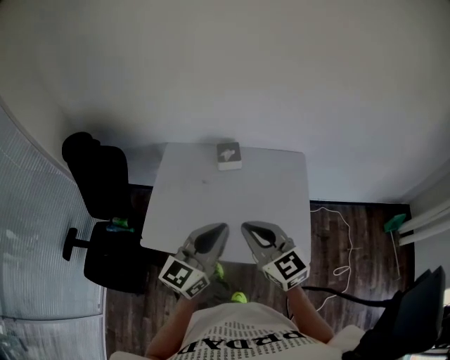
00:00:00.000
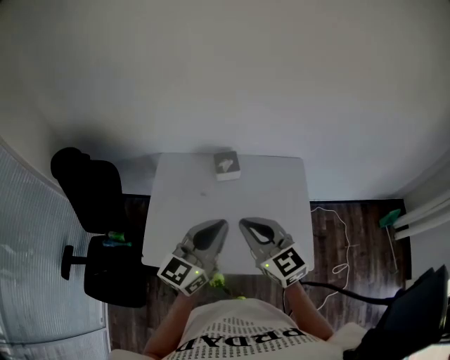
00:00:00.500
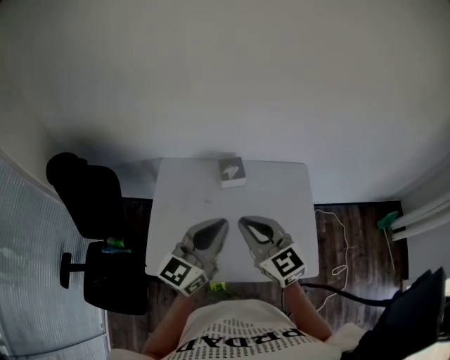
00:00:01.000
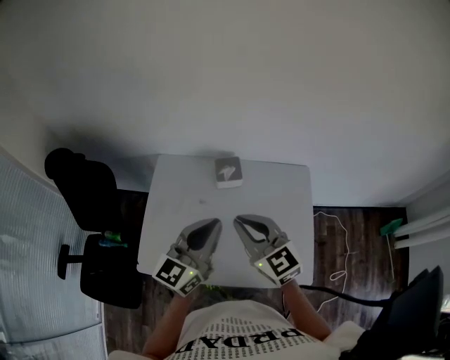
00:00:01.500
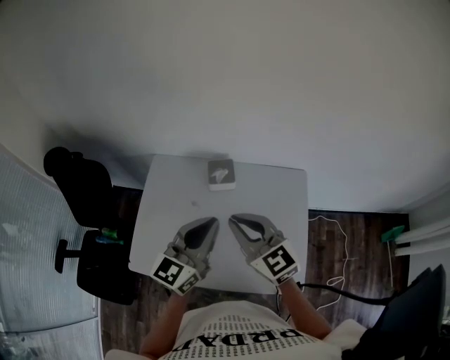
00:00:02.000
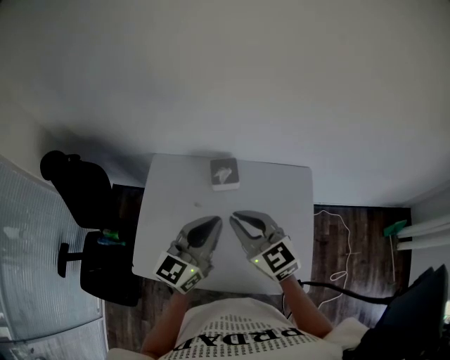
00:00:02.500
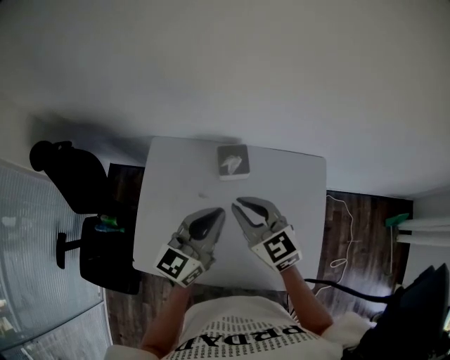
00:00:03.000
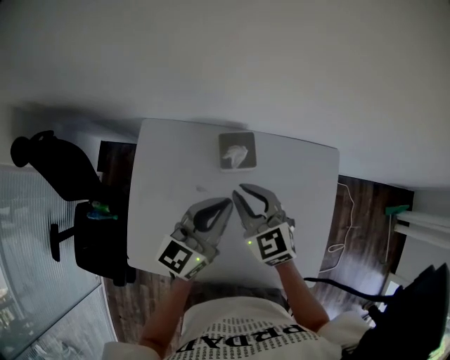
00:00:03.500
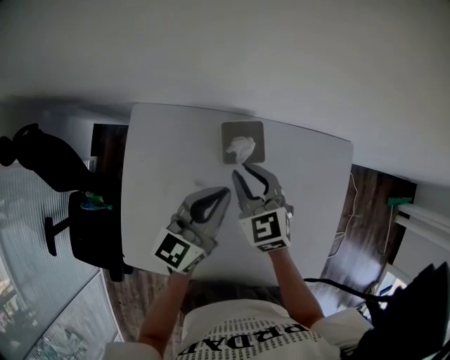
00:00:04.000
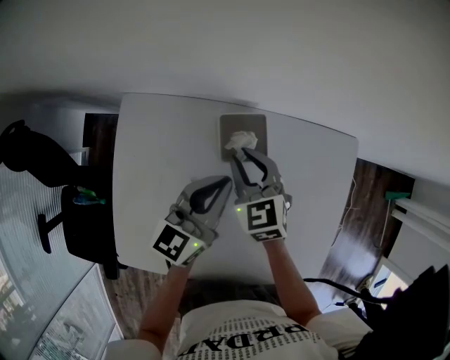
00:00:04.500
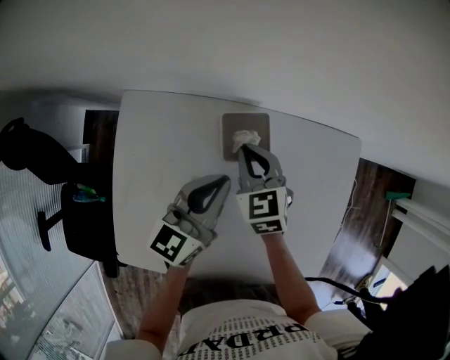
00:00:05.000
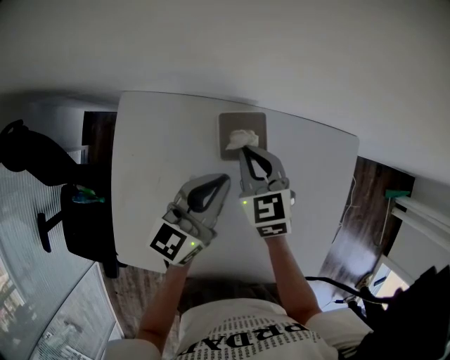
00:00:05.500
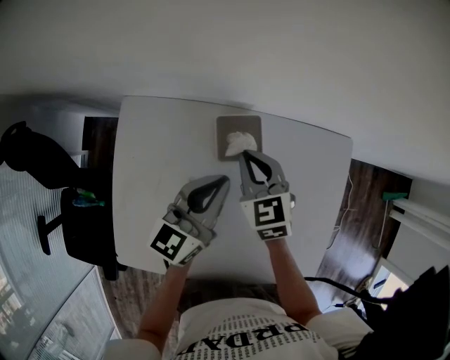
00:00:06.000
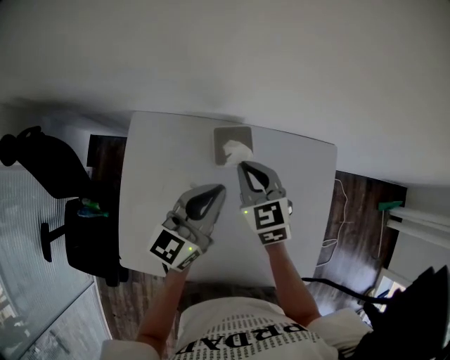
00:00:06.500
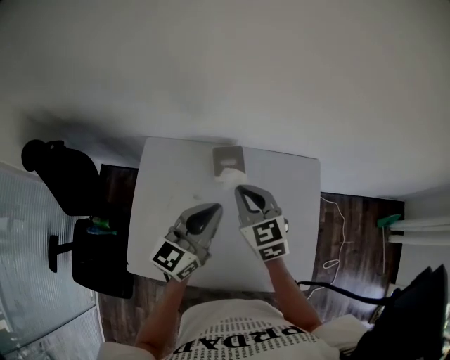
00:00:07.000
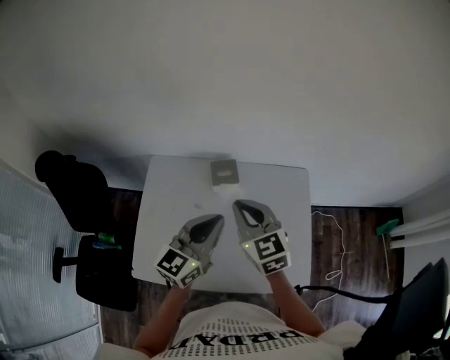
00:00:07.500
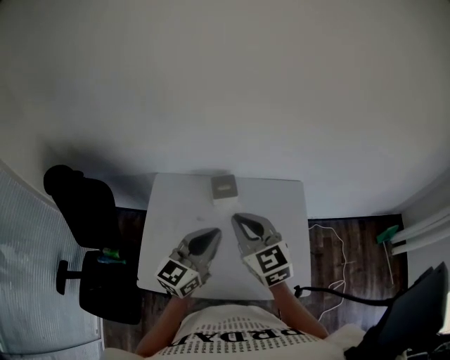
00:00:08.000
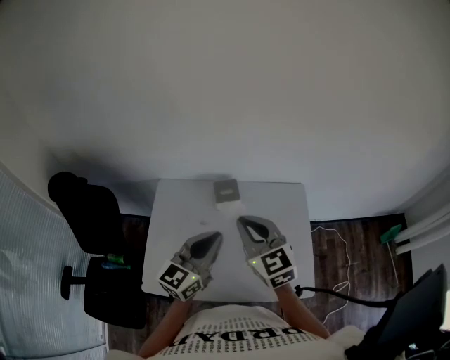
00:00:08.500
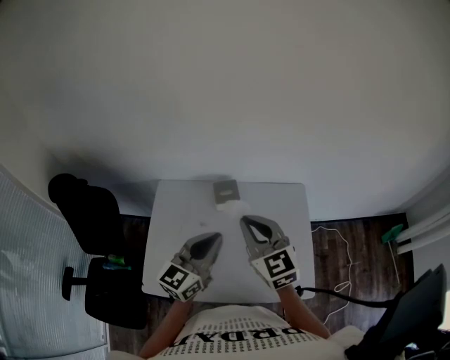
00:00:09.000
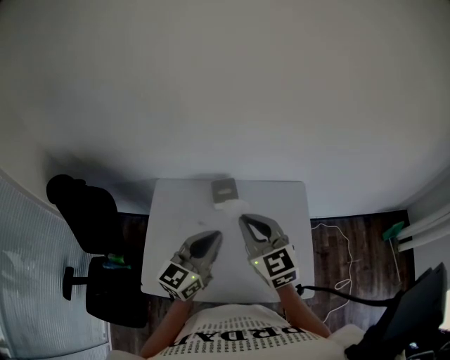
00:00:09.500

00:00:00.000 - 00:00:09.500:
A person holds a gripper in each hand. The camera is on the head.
00:00:00.000 - 00:00:02.000: Both grippers travel together forward, about 20 cm.
00:00:02.000 - 00:00:04.000: Both grippers travel together downward and forward, approximately 30 cm. The right gripper swivels about 20 degrees.
00:00:04.000 - 00:00:05.500: The right gripper changes place by about 5 cm.
00:00:05.500 - 00:00:07.500: The two grippers go about 30 cm upward and backward.
00:00:07.500 - 00:00:09.500: The right gripper shifts approximately 5 cm upward.

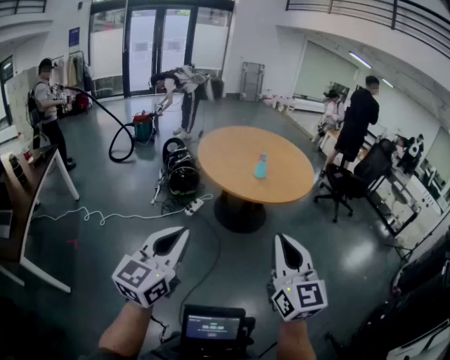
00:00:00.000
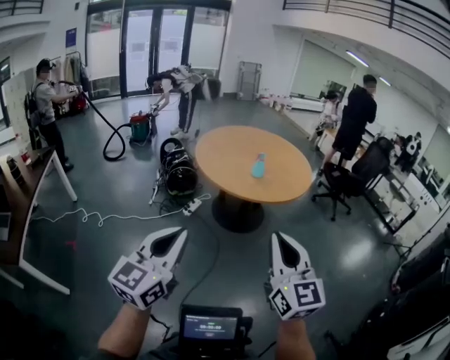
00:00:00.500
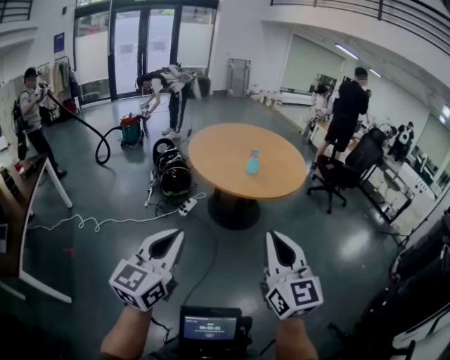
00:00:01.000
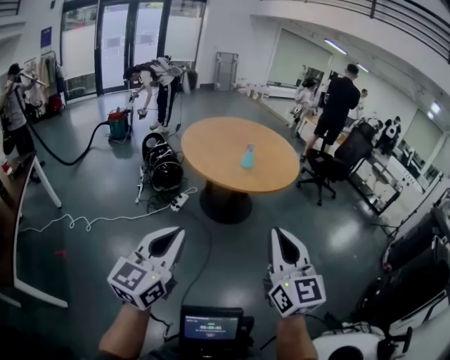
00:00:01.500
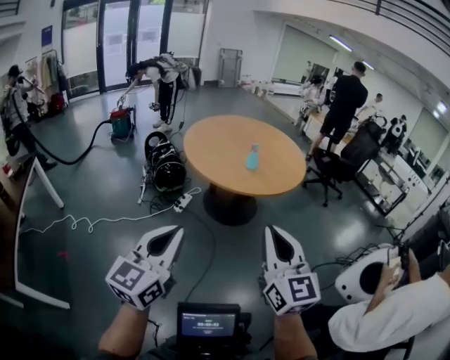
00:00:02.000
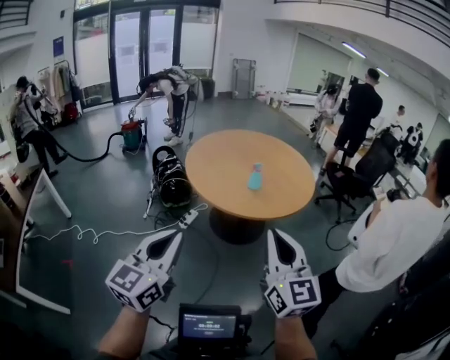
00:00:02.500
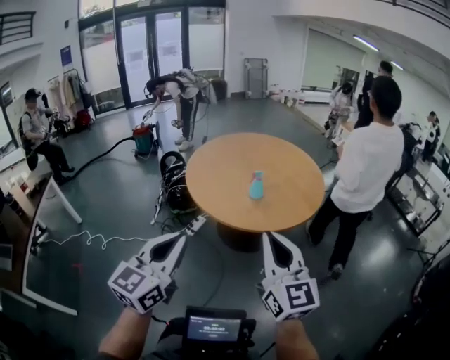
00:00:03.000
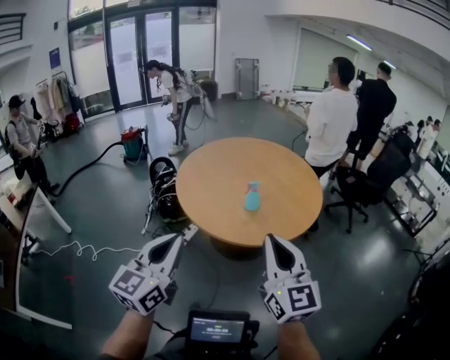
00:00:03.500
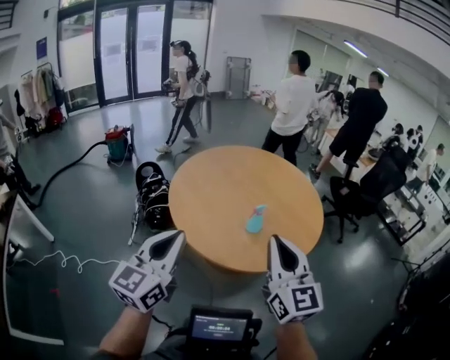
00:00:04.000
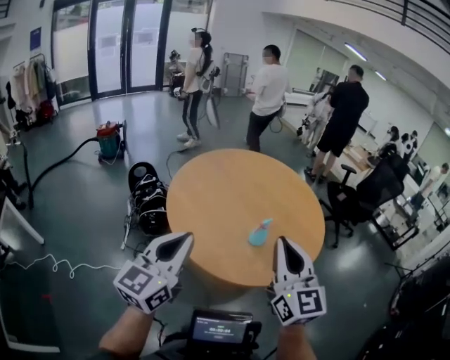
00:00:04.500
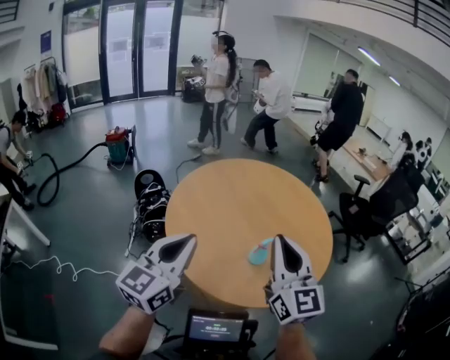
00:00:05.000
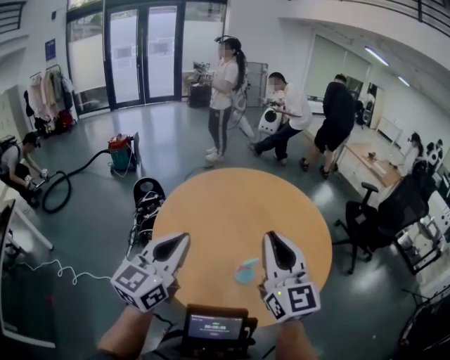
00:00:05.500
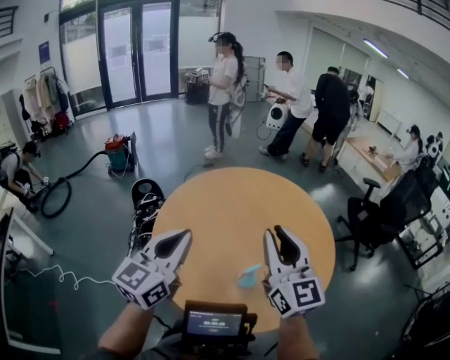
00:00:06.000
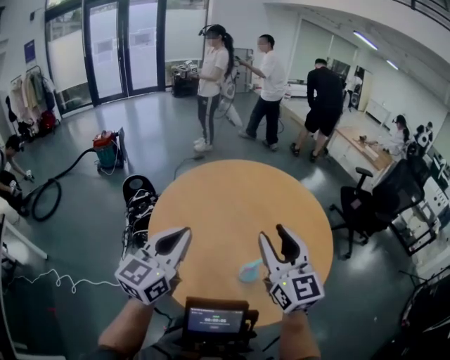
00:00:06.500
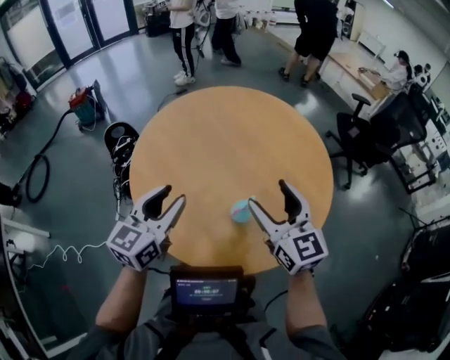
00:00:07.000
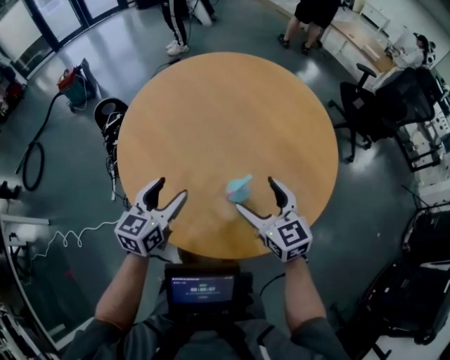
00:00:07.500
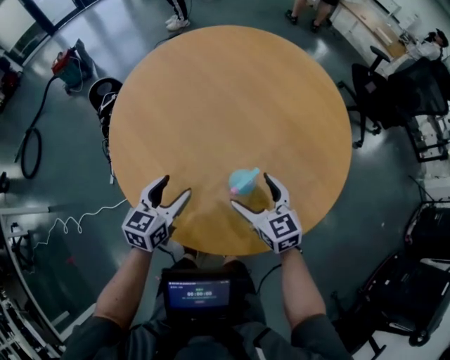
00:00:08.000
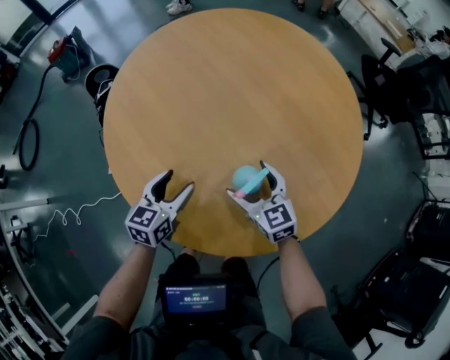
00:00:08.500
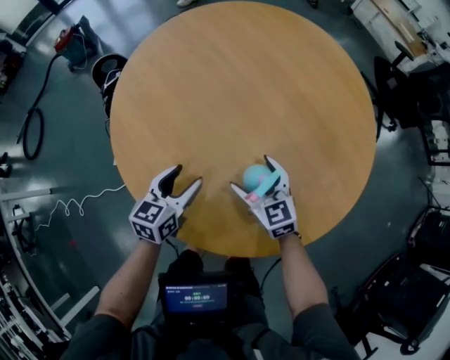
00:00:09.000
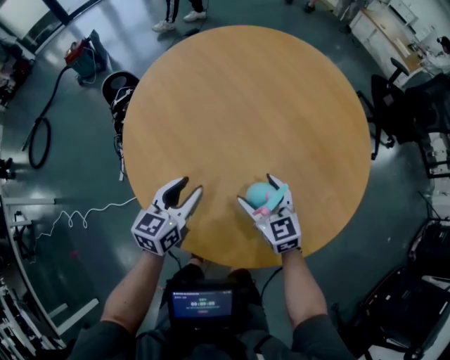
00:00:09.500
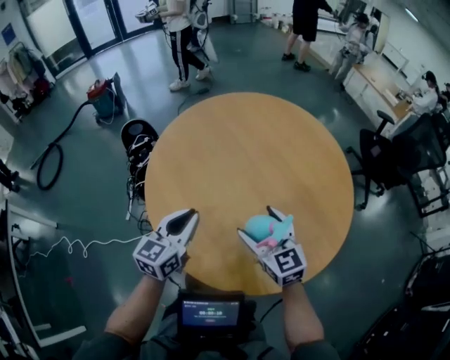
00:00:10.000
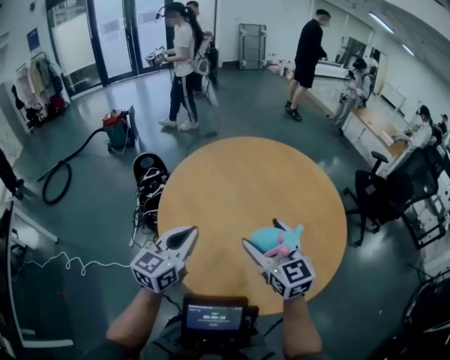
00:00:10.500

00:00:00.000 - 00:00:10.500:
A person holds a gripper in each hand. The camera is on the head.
00:00:00.000 - 00:00:02.000: The right gripper moves to the left, about 5 cm, while the left gripper moves roughly 5 cm.
00:00:02.000 - 00:00:04.000: Both grippers move forward, roughly 40 cm.
00:00:04.000 - 00:00:06.500: The two grippers go approximately 30 cm forward. The right gripper opens.
00:00:06.500 - 00:00:08.500: The two grippers go roughly 35 cm downward. The right gripper tilts its fingers about 30 degrees downward, and opens up. Meanwhile the left gripper angles its fingers downward, by approximately 30 degrees, and opens its fingers.
00:00:08.500 - 00:00:10.500: Both grippers move upward, approximately 25 cm. The left gripper turns by some 20 degrees, and closes its fingers.

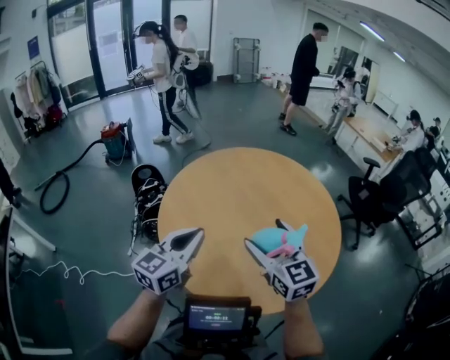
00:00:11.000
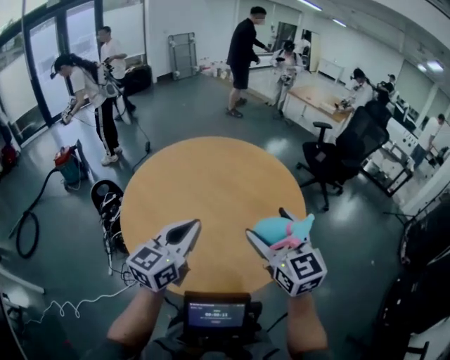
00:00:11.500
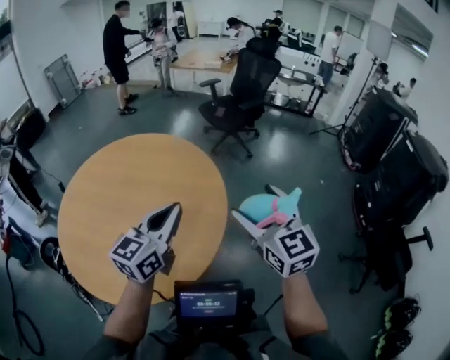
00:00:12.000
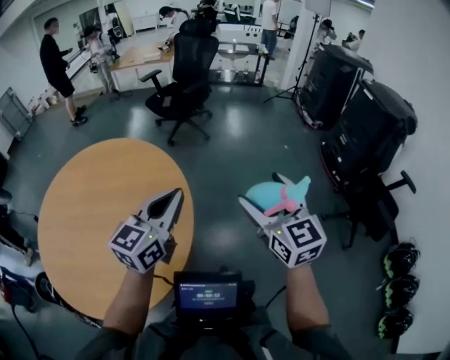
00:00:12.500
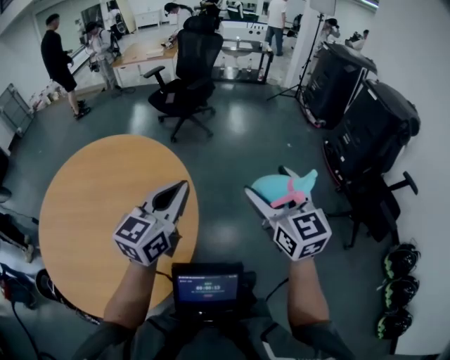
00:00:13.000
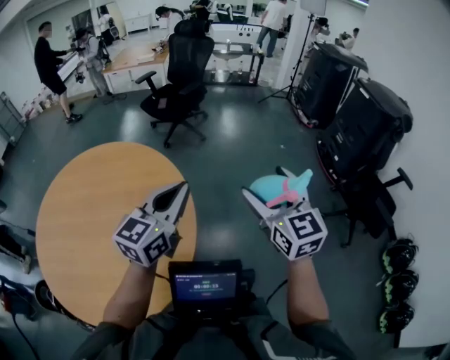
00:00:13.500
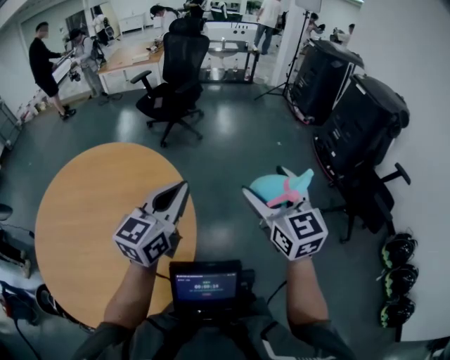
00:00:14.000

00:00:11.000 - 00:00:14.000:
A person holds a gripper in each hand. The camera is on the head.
00:00:11.000 - 00:00:12.500: The two grippers travel together, about 50 cm. The left gripper rotates some 60 degrees; the right gripper changes its angle by approximately 70 degrees.
00:00:12.500 - 00:00:14.000: There are only small adjustments of the grippers.

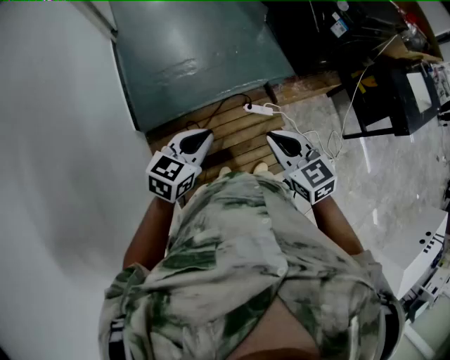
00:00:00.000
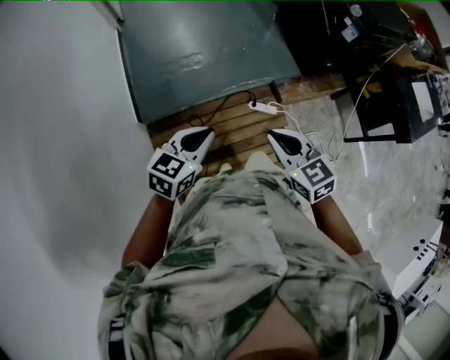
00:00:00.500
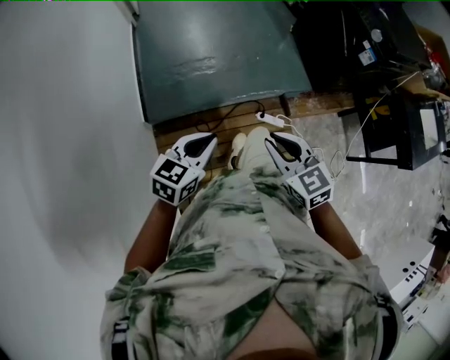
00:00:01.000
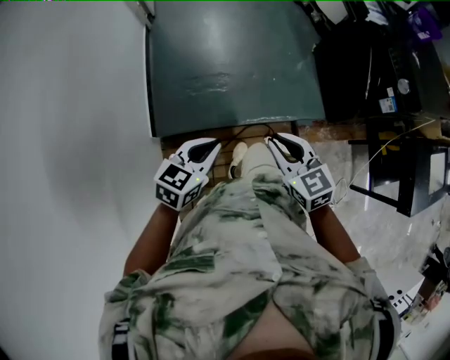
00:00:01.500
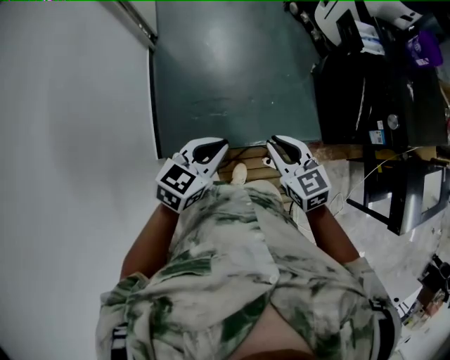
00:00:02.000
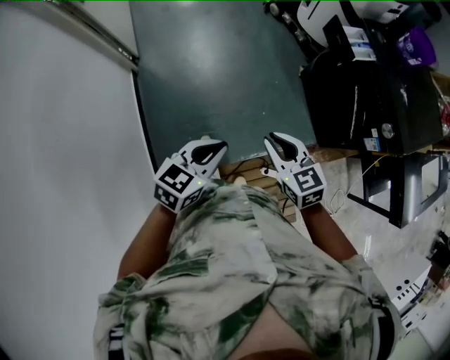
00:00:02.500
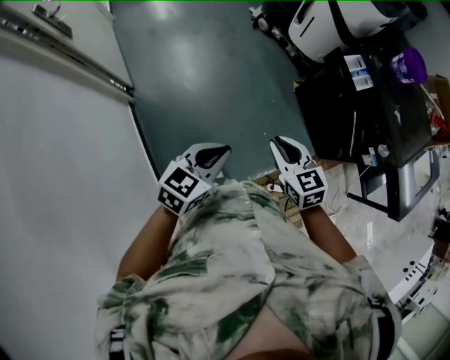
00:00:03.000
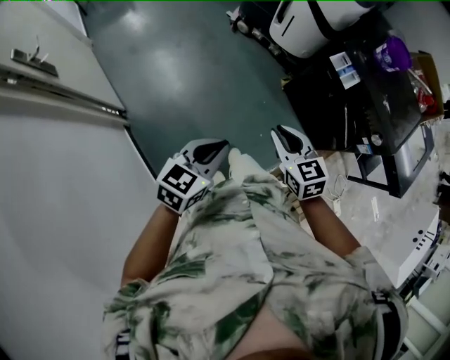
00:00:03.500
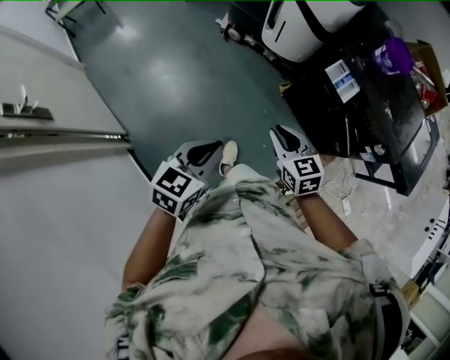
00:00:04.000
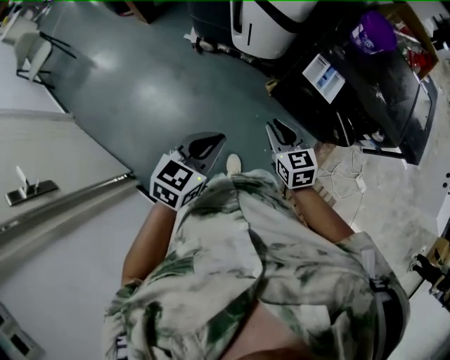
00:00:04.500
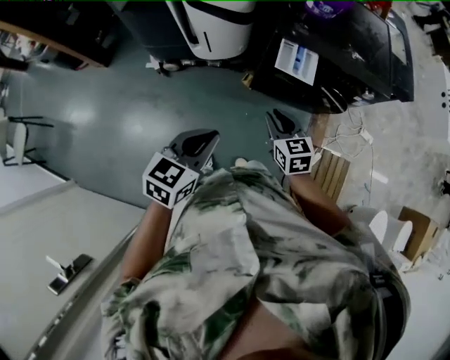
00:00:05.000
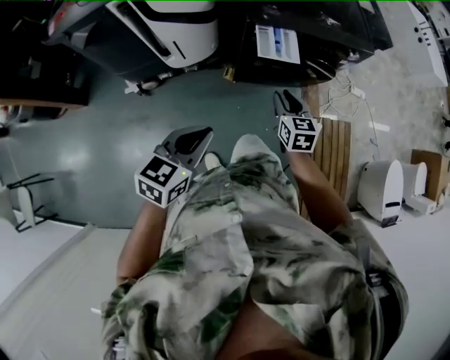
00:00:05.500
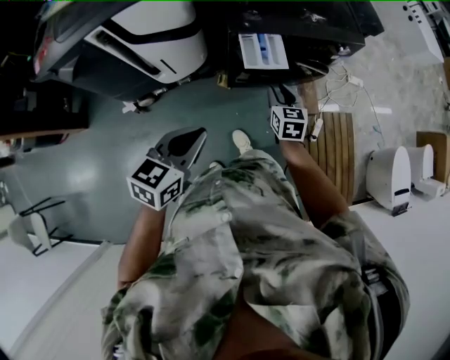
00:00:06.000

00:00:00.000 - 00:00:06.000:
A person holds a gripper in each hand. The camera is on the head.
00:00:00.000 - 00:00:02.000: The two grippers travel together, forward, roughly 40 cm.
00:00:02.000 - 00:00:04.000: The two grippers travel together, roughly 60 cm. The left gripper rotates roughly 30 degrees; the right gripper turns by roughly 40 degrees.
00:00:04.000 - 00:00:06.000: The right gripper ends up about 35 cm from where it was, and rotates approximately 70 degrees. The left gripper moves approximately 40 cm, and turns by approximately 50 degrees.
